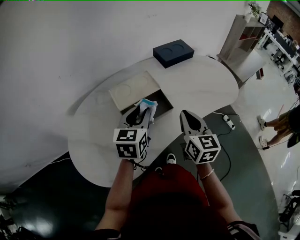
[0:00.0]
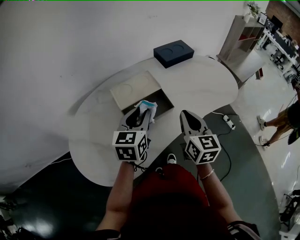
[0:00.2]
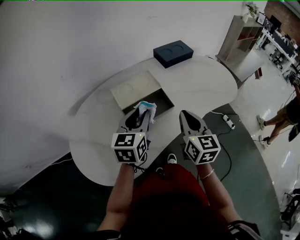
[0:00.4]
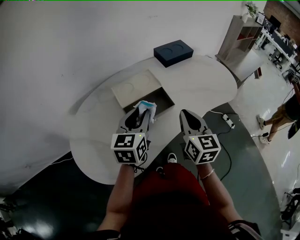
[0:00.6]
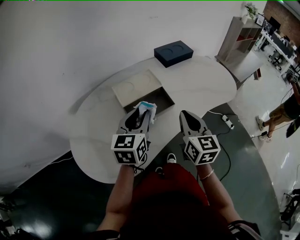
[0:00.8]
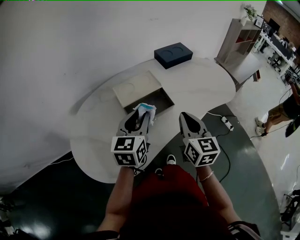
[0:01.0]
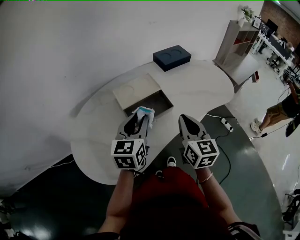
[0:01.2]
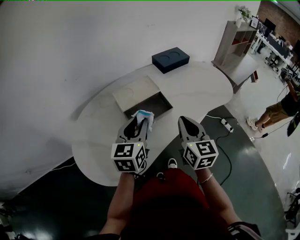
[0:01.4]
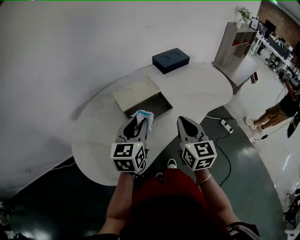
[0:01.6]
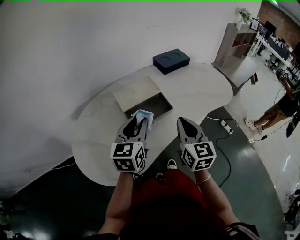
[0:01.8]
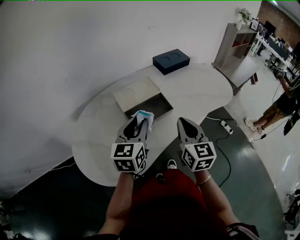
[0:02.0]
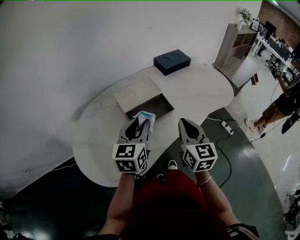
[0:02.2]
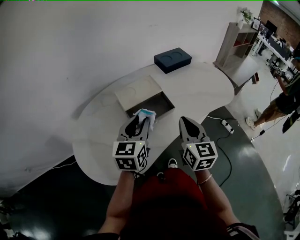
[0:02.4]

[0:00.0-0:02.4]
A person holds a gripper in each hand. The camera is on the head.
0.0 to 1.2 s: The grippers both shift backward by roughly 5 cm.
1.2 to 2.4 s: The two grippers keep their place.

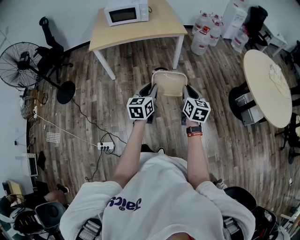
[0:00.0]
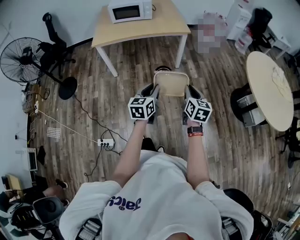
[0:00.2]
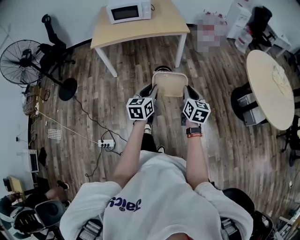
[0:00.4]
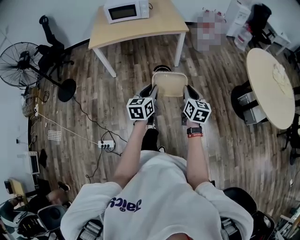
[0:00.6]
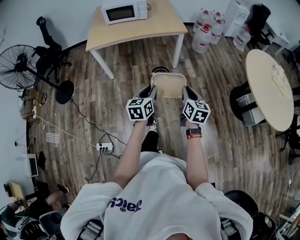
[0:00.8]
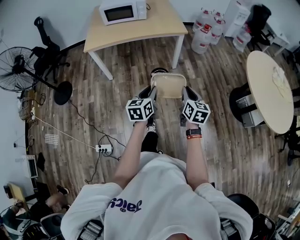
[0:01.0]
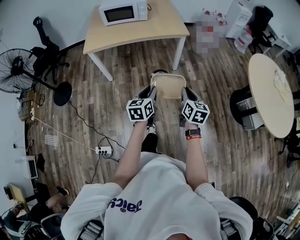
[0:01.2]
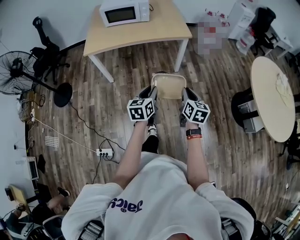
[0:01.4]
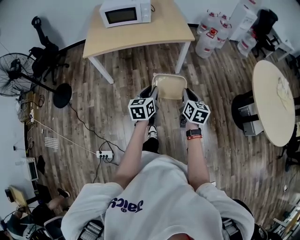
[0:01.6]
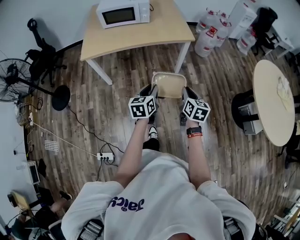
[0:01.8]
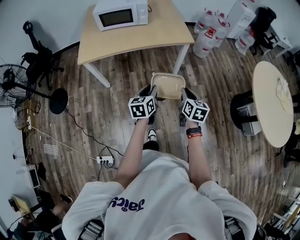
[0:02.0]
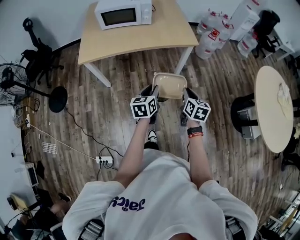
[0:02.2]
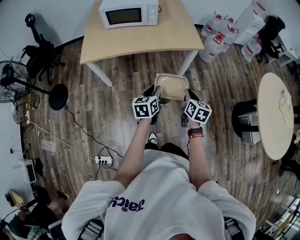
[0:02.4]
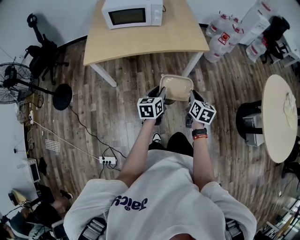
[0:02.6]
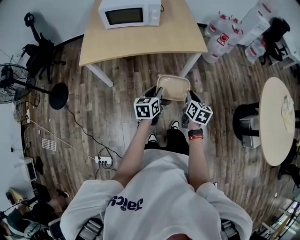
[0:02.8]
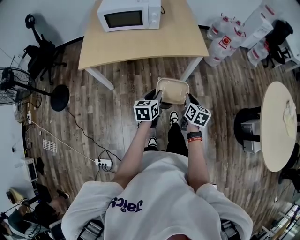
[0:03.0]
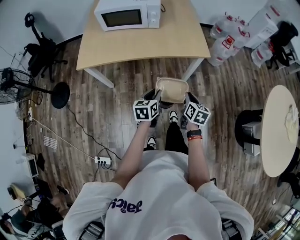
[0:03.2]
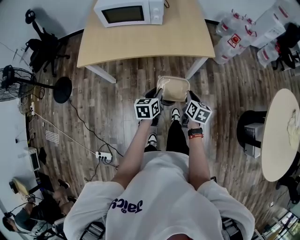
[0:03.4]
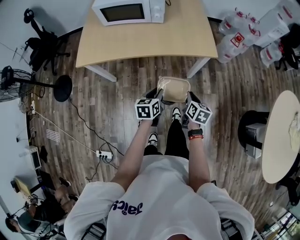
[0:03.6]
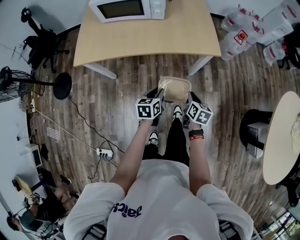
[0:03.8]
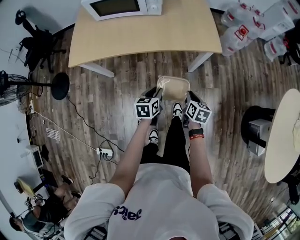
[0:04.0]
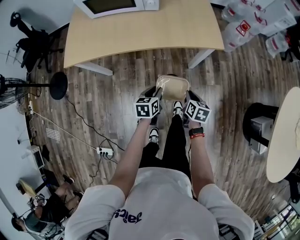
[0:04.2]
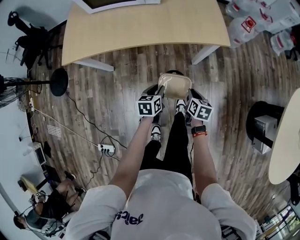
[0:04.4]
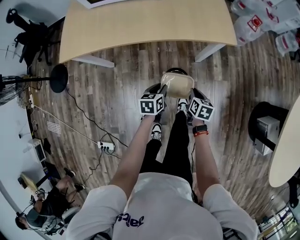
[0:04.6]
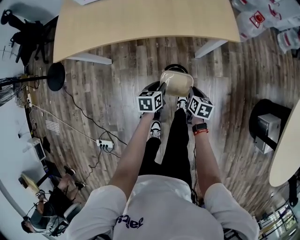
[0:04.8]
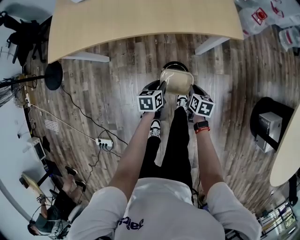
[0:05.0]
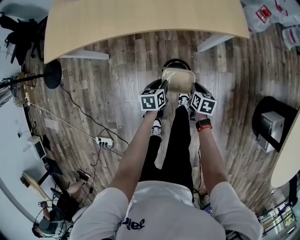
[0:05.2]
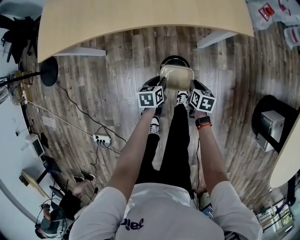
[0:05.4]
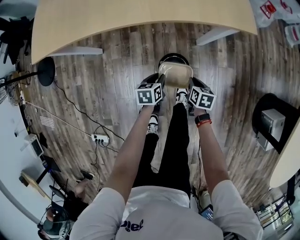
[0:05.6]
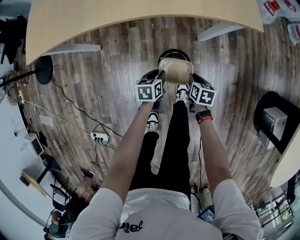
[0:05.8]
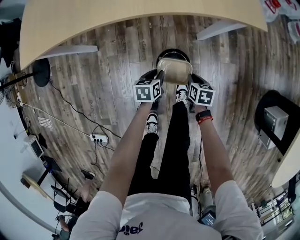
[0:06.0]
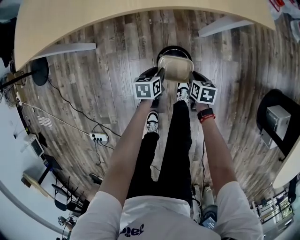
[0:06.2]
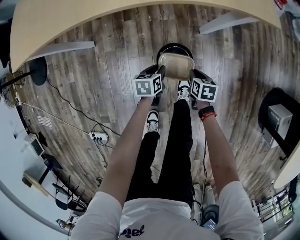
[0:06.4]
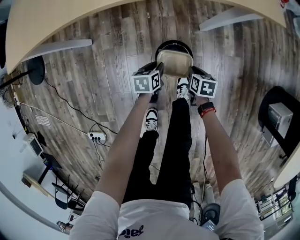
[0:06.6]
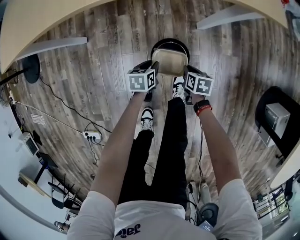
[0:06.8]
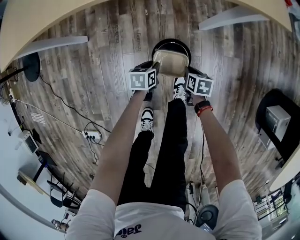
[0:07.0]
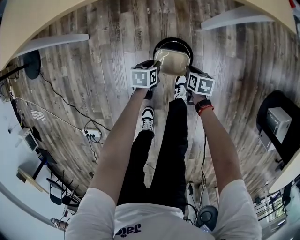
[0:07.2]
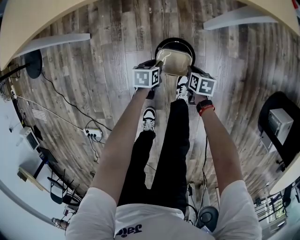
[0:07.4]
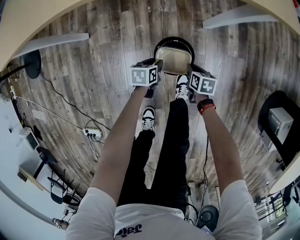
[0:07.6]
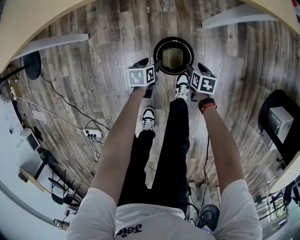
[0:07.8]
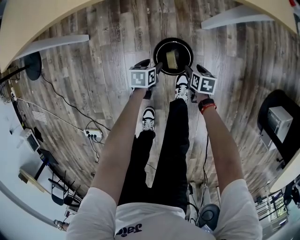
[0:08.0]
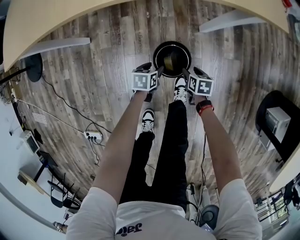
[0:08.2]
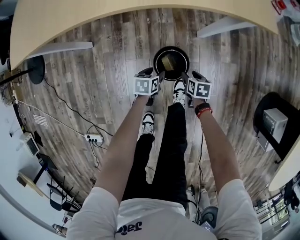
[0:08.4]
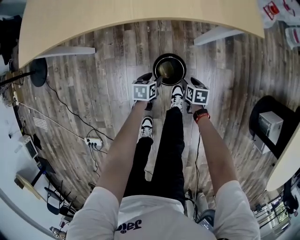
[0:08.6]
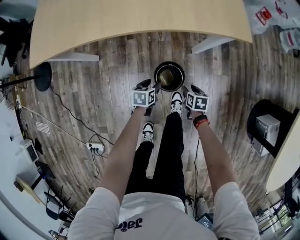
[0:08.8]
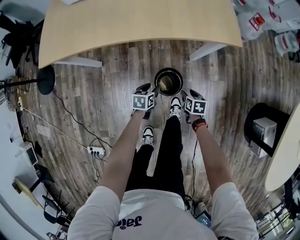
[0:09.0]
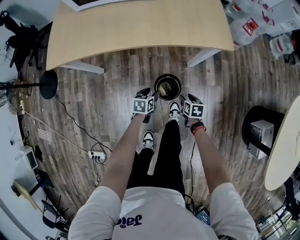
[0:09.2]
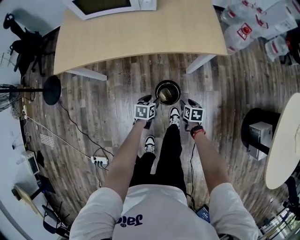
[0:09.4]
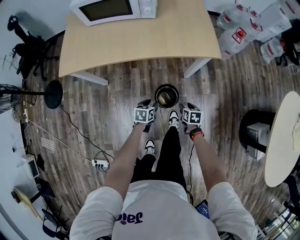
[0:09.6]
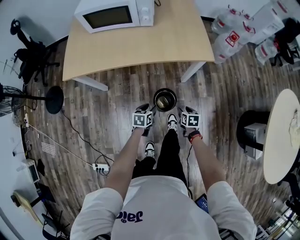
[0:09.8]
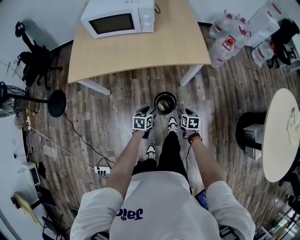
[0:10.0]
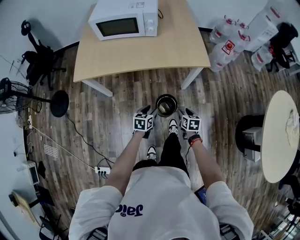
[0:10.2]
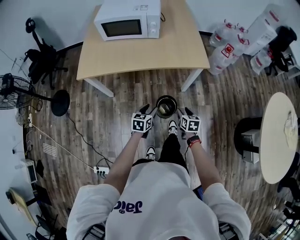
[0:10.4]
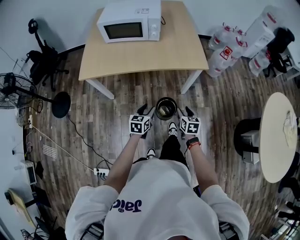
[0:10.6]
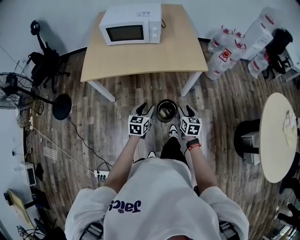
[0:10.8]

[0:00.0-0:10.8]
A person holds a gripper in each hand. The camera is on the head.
0.0 to 1.6 s: Both grippers move forward, about 25 cm.
1.6 to 3.0 s: The two grippers go roughly 25 cm forward.
3.0 to 4.6 s: The grippers both shift downward and forward by approximately 30 cm.
4.6 to 6.2 s: Both grippers travel together downward, approximately 30 cm.
6.2 to 7.8 s: Both grippers move downward, approximately 10 cm. The right gripper opens up, while the left gripper opens.
7.8 to 9.2 s: Both grippers travel together upward, some 30 cm.
9.2 to 10.8 s: The two grippers go about 40 cm upward and backward. The right gripper changes its angle by about 30 degrees; the left gripper turns by approximately 30 degrees.

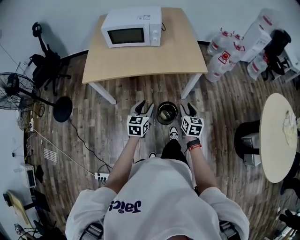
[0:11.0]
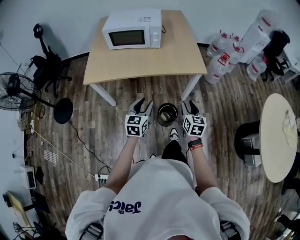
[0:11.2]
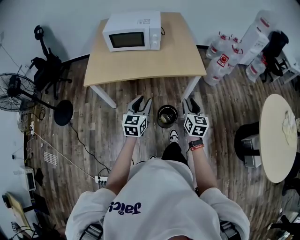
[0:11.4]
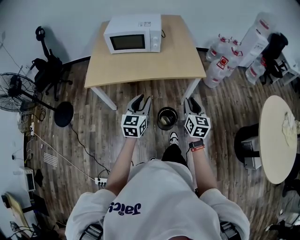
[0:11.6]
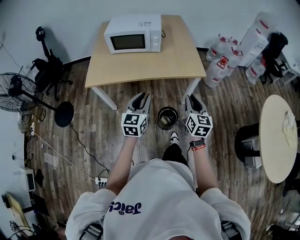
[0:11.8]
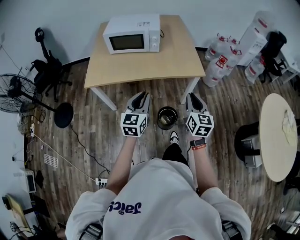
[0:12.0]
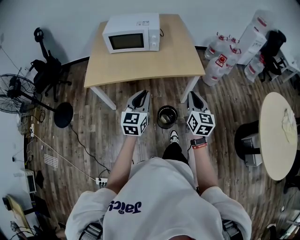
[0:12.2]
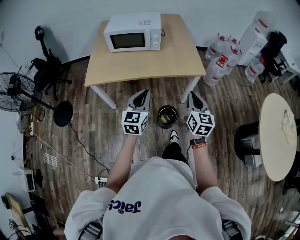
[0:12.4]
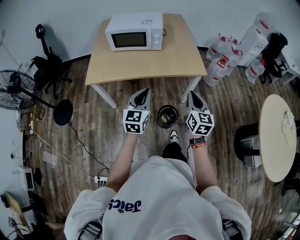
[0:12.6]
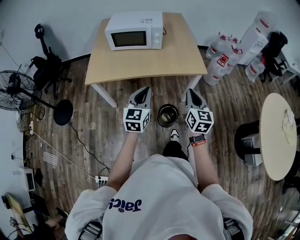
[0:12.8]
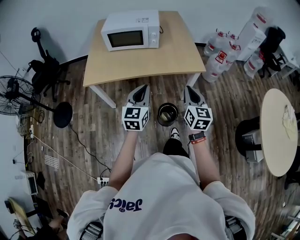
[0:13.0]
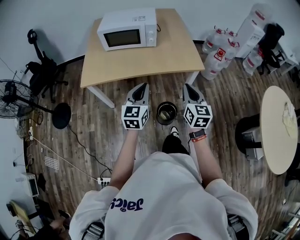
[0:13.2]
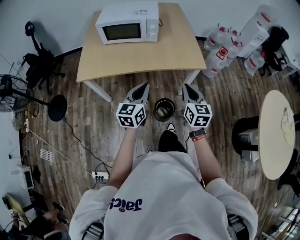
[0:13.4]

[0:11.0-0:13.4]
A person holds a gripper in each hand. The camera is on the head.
11.0 to 12.2 s: Both grippers travel together upward, approximately 15 cm. The right gripper closes its fingers. Meanwhile the left gripper closes its fingers.
12.2 to 13.4 s: The grippers both shift forward by roughly 5 cm.

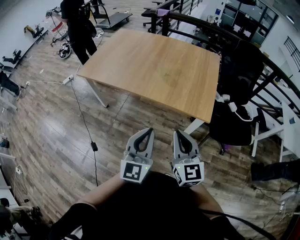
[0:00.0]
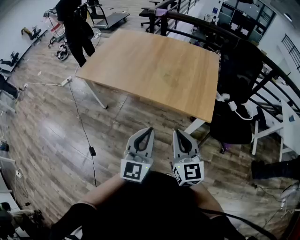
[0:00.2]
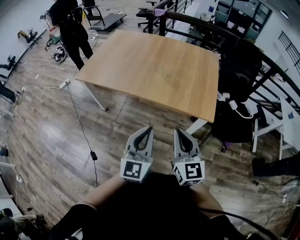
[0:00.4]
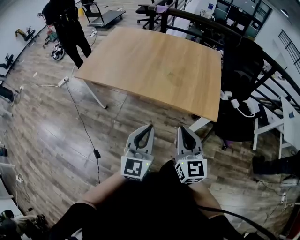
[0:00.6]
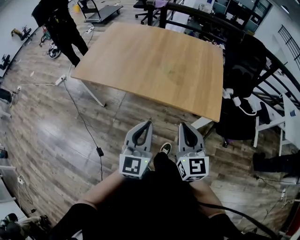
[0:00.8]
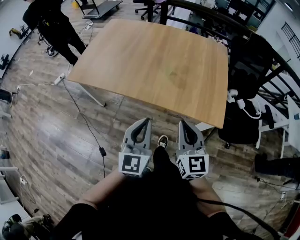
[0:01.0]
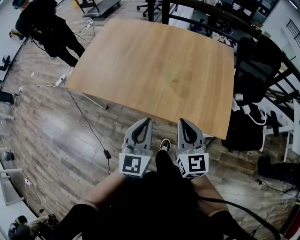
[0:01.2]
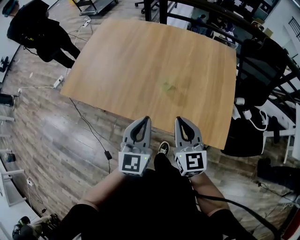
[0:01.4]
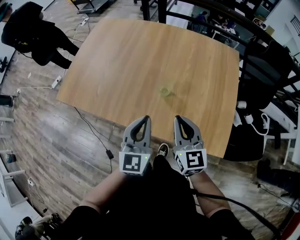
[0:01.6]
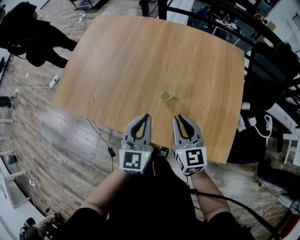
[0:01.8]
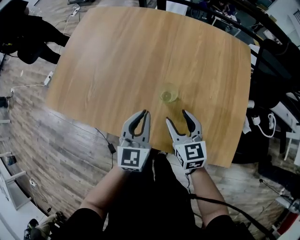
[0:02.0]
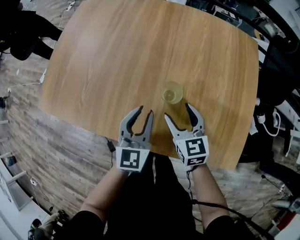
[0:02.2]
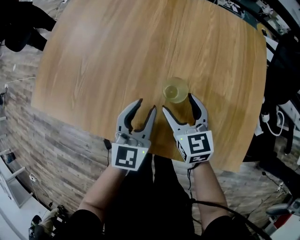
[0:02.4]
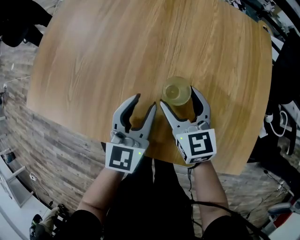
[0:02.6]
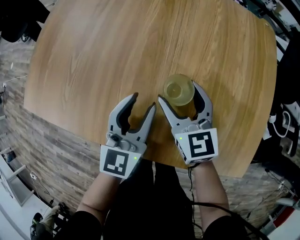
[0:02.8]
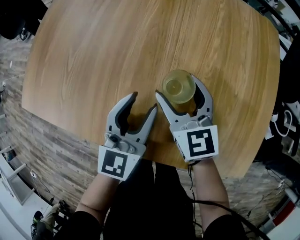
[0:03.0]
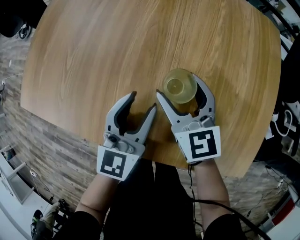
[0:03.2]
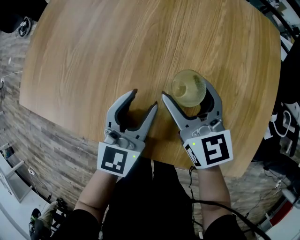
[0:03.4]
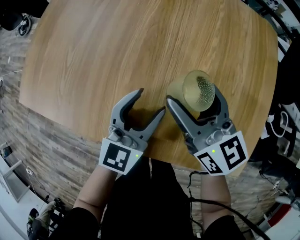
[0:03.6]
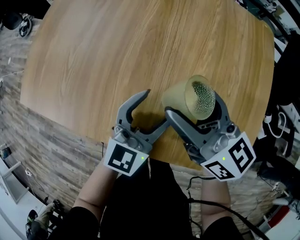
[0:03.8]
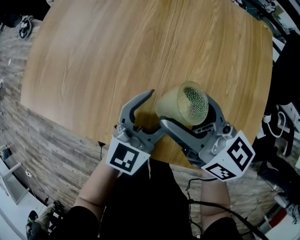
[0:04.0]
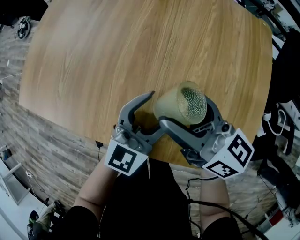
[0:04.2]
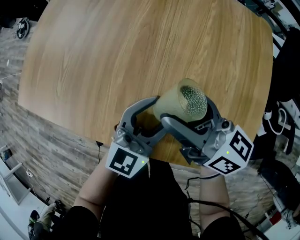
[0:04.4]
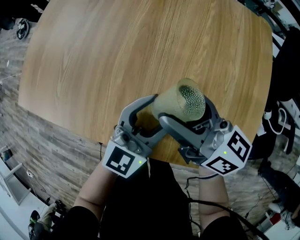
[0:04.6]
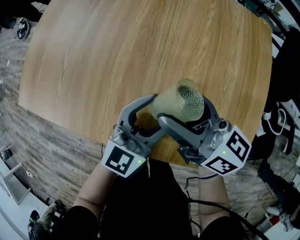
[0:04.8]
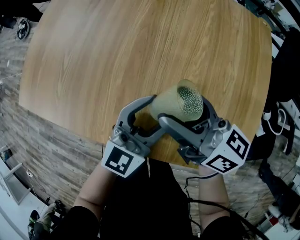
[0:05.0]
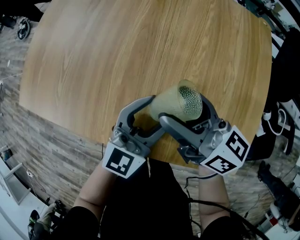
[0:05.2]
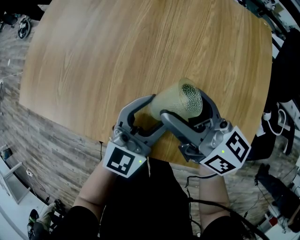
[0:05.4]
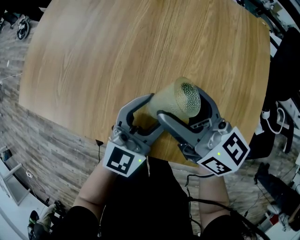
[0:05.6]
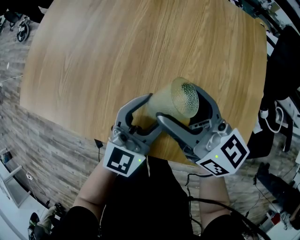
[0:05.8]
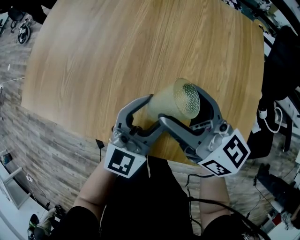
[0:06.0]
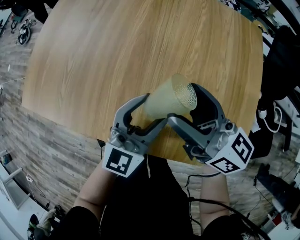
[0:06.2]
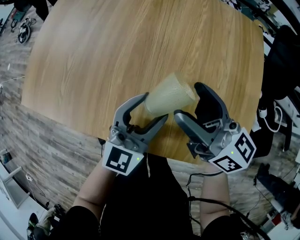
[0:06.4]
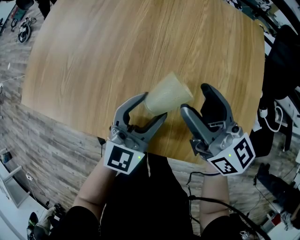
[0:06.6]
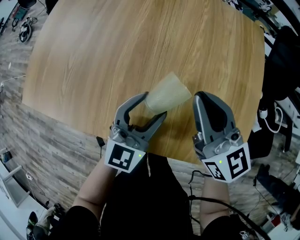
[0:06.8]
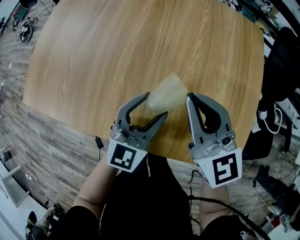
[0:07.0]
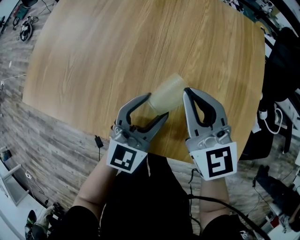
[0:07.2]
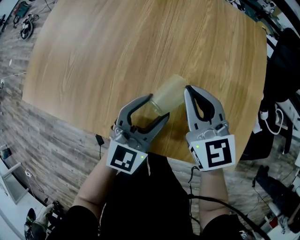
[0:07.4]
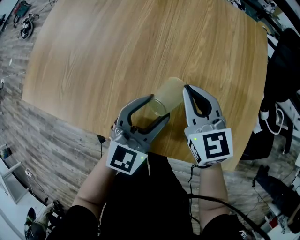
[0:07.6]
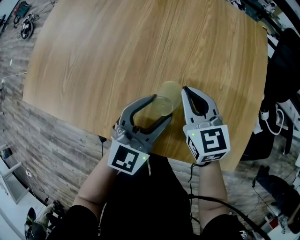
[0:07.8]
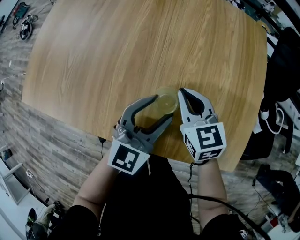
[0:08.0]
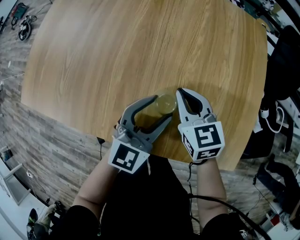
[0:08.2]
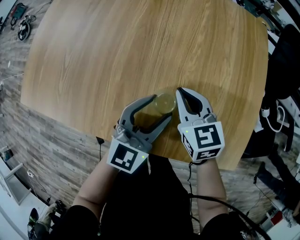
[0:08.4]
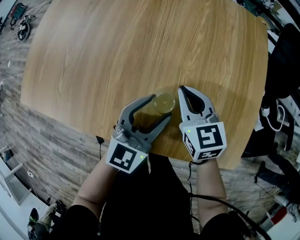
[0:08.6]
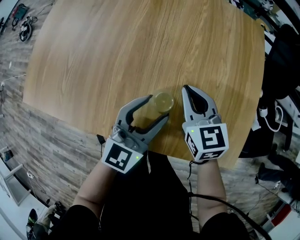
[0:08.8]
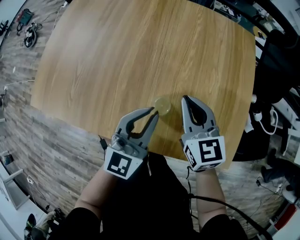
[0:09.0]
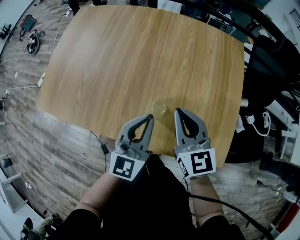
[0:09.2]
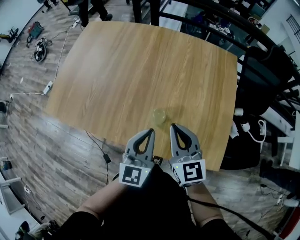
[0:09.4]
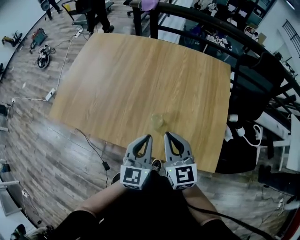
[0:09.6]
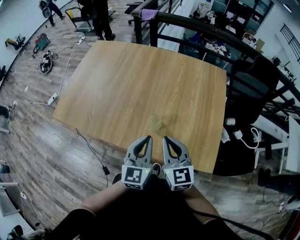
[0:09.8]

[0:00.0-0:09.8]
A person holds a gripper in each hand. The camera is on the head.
0.0 to 1.4 s: Both grippers move forward, about 35 cm.
1.4 to 2.8 s: The grippers both shift forward and downward by some 35 cm. The right gripper opens up. Meanwhile the left gripper opens up.
2.8 to 4.2 s: The right gripper shifts some 10 cm upward, and rotates some 40 degrees. Meanwhile the left gripper moves to the right, roughly 5 cm, rotates roughly 20 degrees, and opens.
4.2 to 5.6 s: There are only small adjustments of the grippers.
5.6 to 7.0 s: The right gripper moves approximately 5 cm, turns by about 40 degrees, and closes its fingers.
7.0 to 8.4 s: The right gripper moves downward, some 15 cm, and rotates about 20 degrees.
8.4 to 9.8 s: Both grippers move upward and backward, some 25 cm. The left gripper changes its angle by roughly 30 degrees, and closes its fingers.
